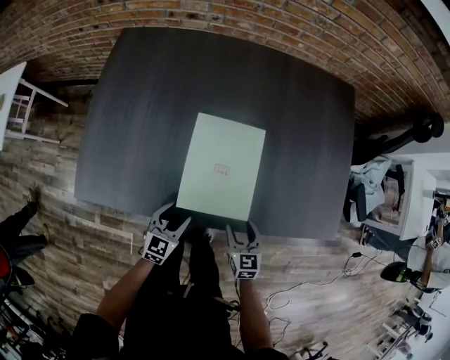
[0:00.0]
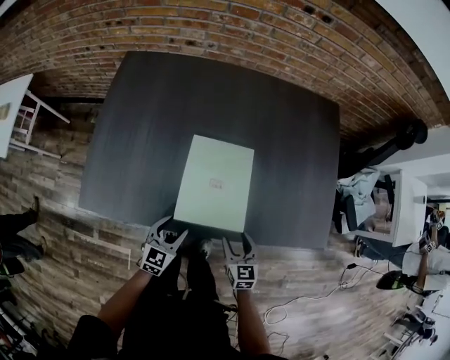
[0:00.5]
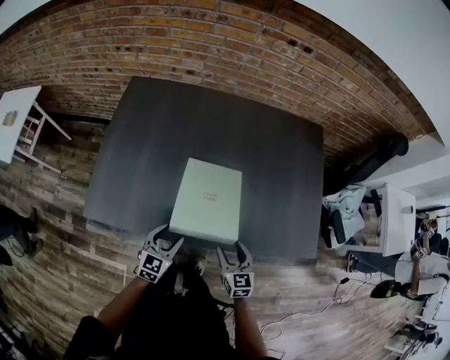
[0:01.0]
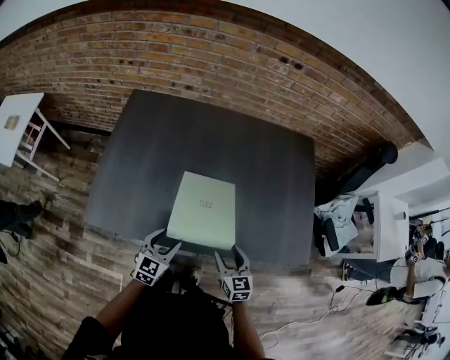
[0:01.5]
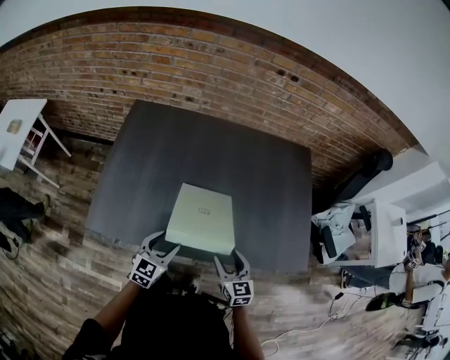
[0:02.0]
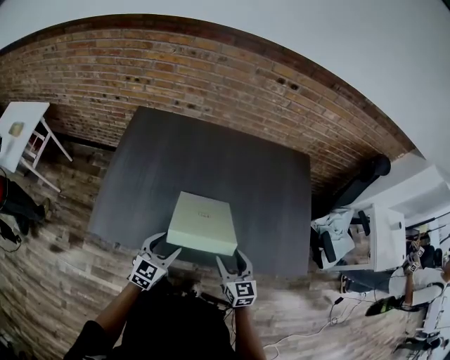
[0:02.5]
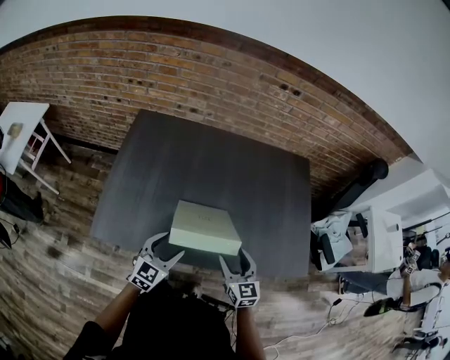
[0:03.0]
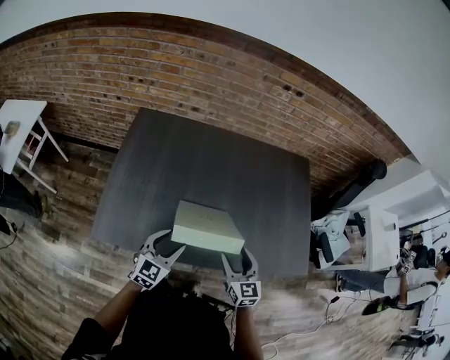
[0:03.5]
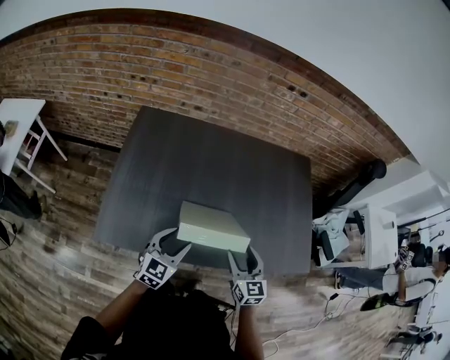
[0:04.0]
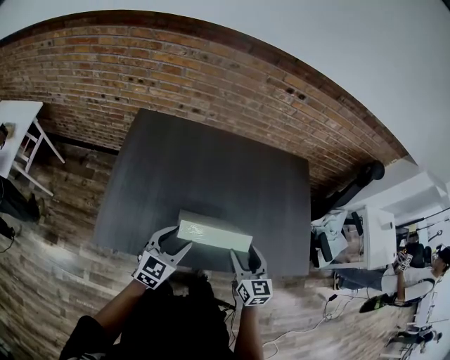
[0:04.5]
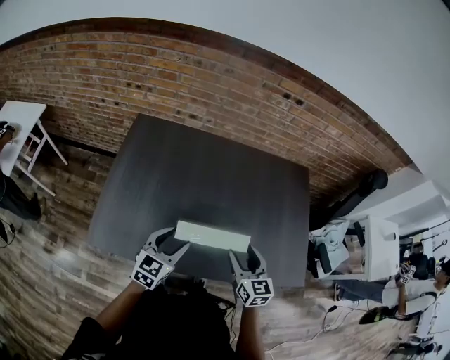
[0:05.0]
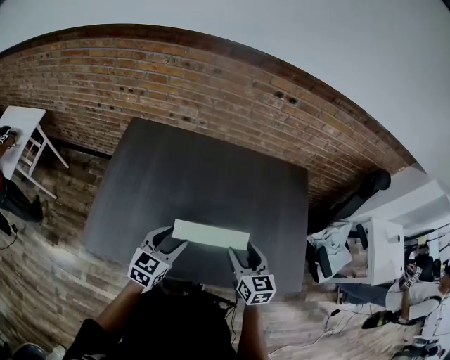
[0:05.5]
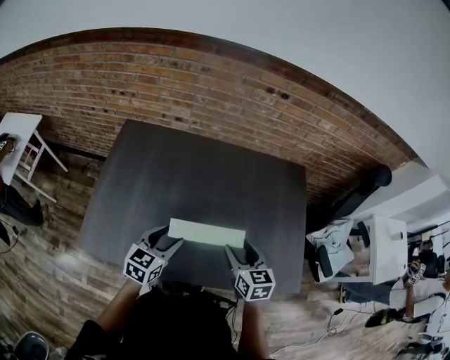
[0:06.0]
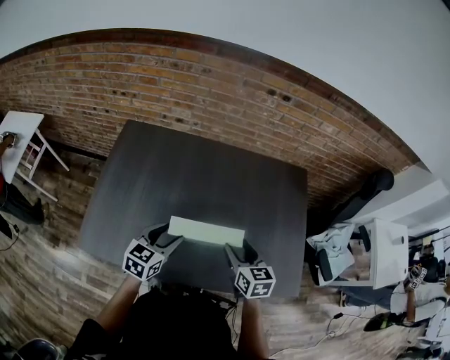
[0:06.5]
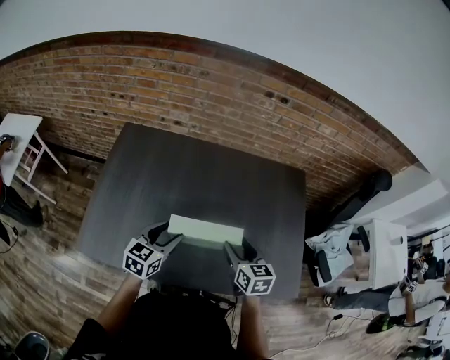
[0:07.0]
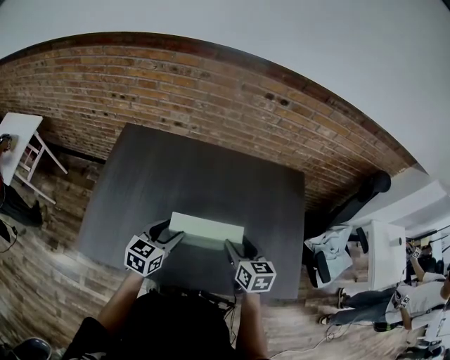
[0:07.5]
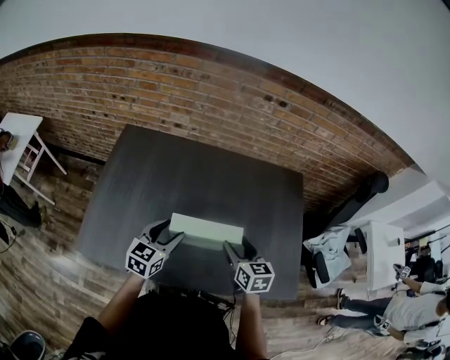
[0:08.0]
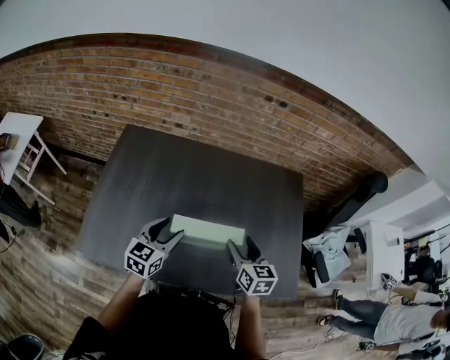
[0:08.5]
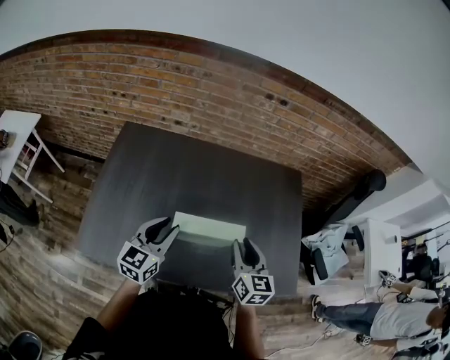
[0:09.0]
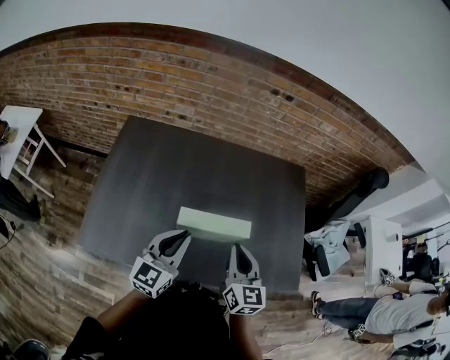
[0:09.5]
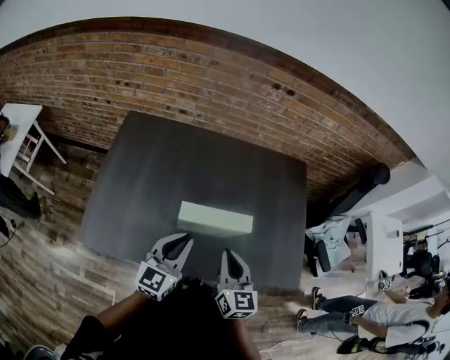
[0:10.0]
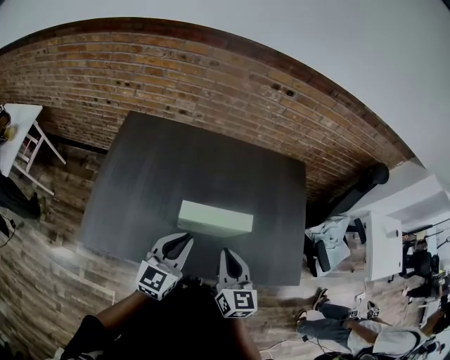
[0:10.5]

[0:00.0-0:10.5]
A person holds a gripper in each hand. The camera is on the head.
0:00.0 to 0:02.0: Both grippers travel together upward, roughly 15 cm.
0:02.0 to 0:04.0: The two grippers go roughly 10 cm upward and to the left.
0:04.0 to 0:06.5: Both grippers move forward and to the right, approximately 15 cm.
0:06.5 to 0:08.5: The grippers make only small movements.
0:08.5 to 0:10.5: The left gripper goes some 10 cm backward, and closes. Meanwhile the right gripper shifts approximately 10 cm backward and to the left, and closes.

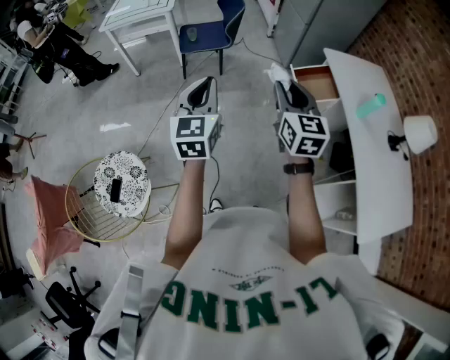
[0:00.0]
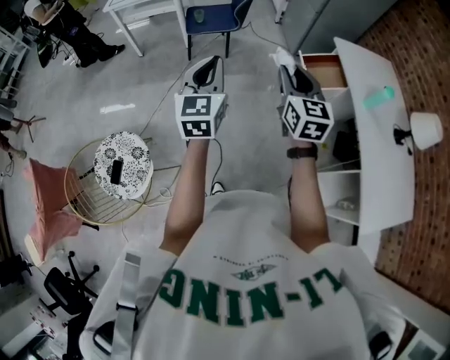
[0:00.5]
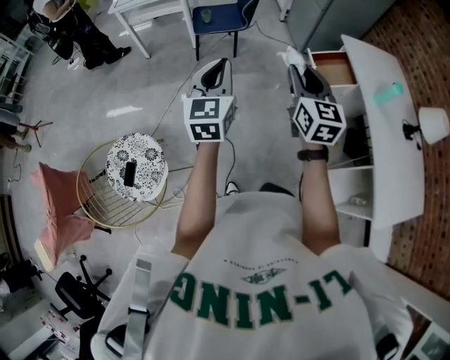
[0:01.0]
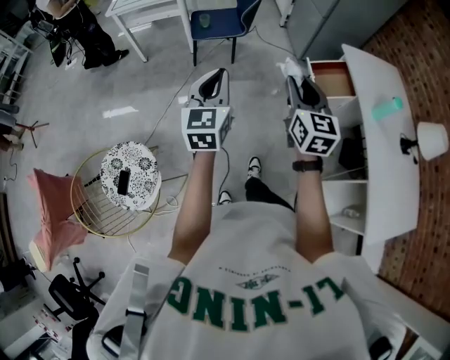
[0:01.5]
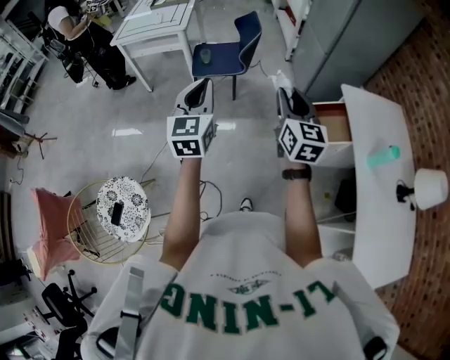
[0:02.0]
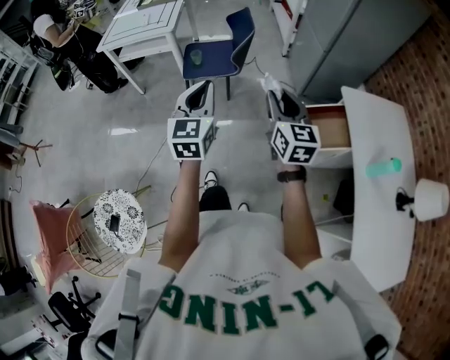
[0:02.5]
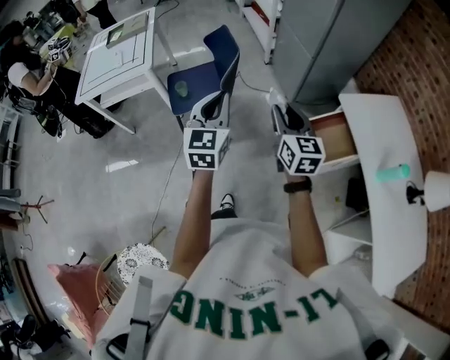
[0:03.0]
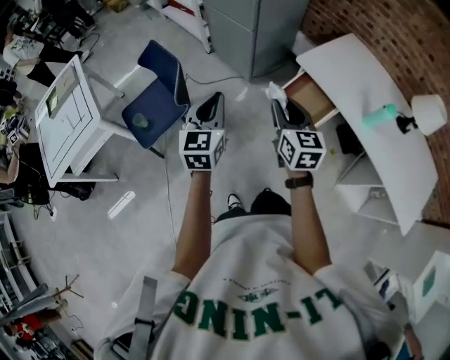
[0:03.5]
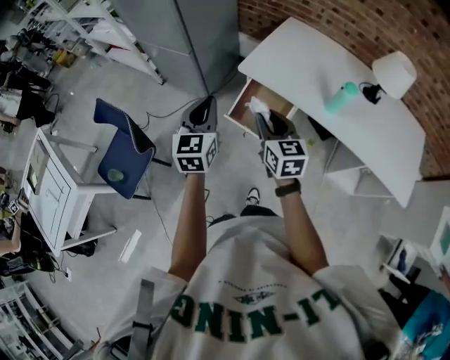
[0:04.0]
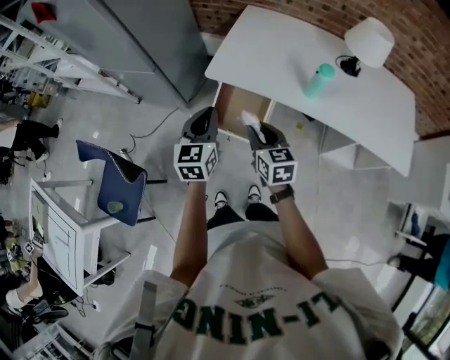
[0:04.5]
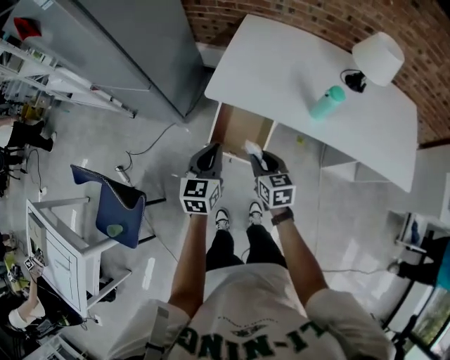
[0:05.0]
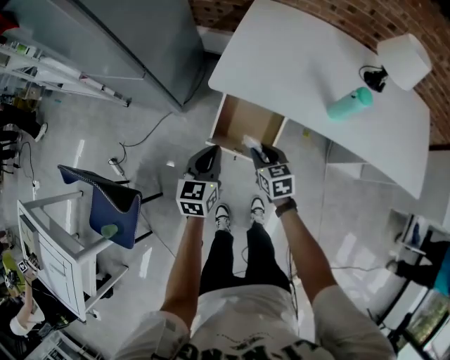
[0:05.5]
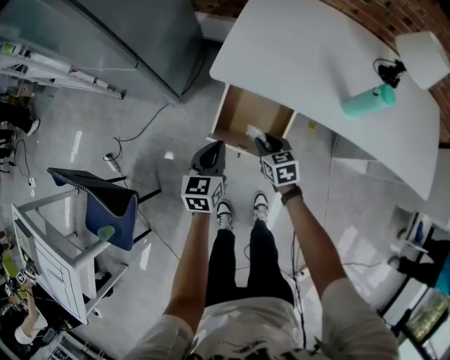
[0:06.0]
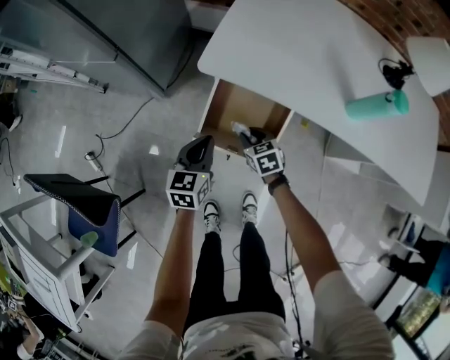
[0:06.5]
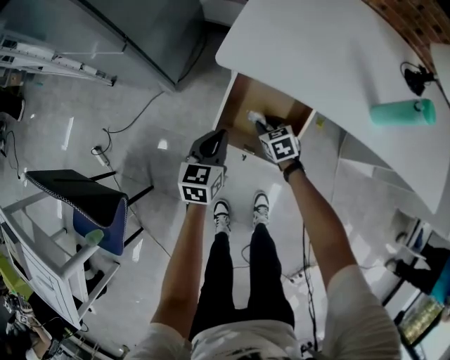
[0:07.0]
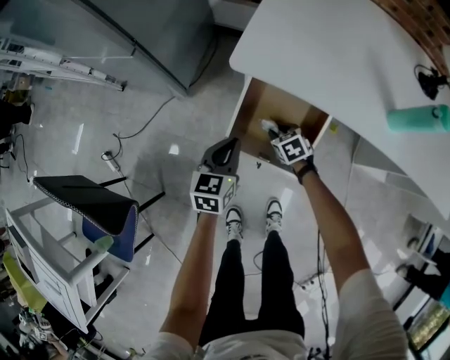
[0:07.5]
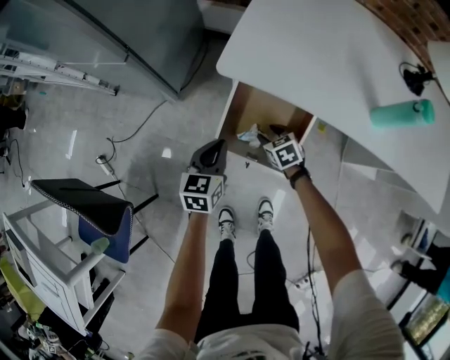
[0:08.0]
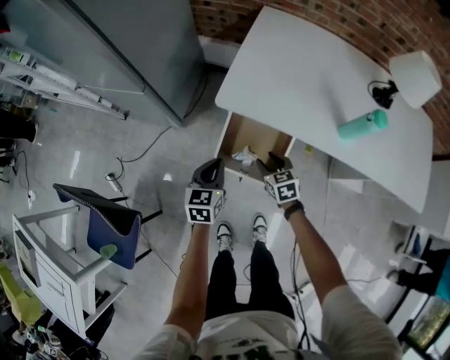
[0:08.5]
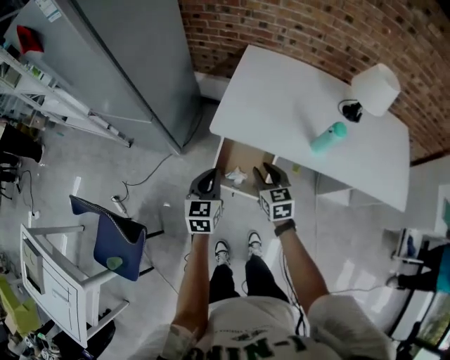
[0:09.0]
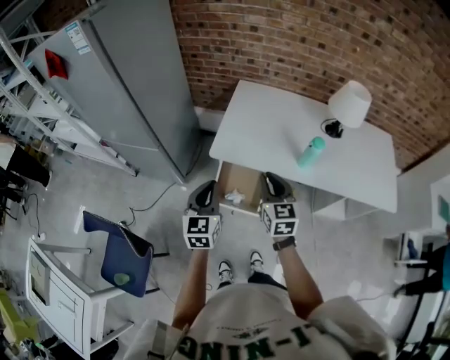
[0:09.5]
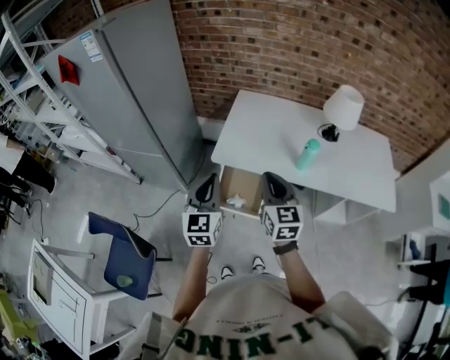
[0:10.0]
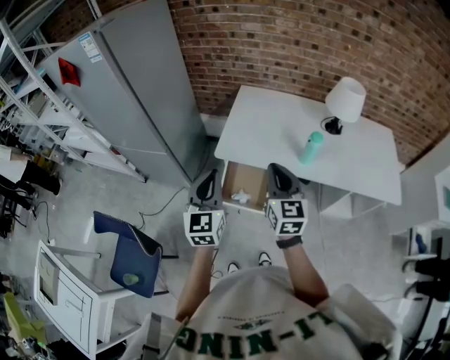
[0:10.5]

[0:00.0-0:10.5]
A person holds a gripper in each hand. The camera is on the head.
0:00.0 to 0:02.0: The two grippers go roughly 20 cm forward.
0:02.0 to 0:04.0: The left gripper shifts by roughly 50 cm, and turns by about 60 degrees. The right gripper moves roughly 30 cm, and turns by some 50 degrees.
0:04.0 to 0:06.5: The right gripper travels downward by roughly 40 cm, and points its fingers roughly 30 degrees further downward. Meanwhile the left gripper shifts some 40 cm downward and forward, and swivels approximately 30 degrees.
0:06.5 to 0:08.5: The left gripper heads upward, covering roughly 5 cm. The right gripper goes roughly 10 cm upward, and opens up.
0:08.5 to 0:10.5: The grippers both shift upward by some 40 cm. The right gripper tips its fingers upward by about 40 degrees, and closes. The left gripper turns by approximately 30 degrees.

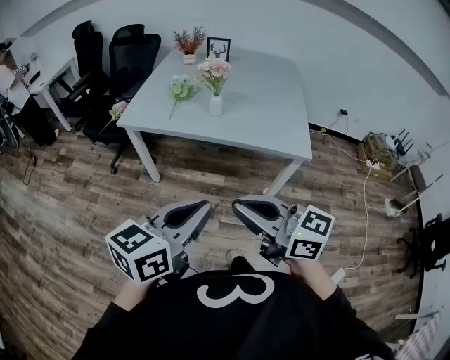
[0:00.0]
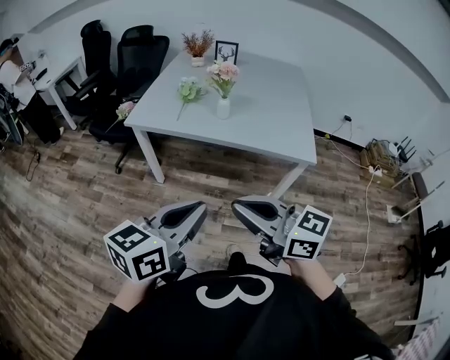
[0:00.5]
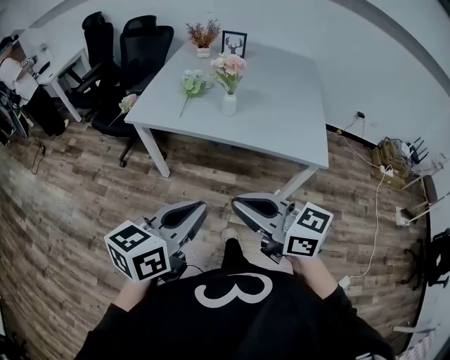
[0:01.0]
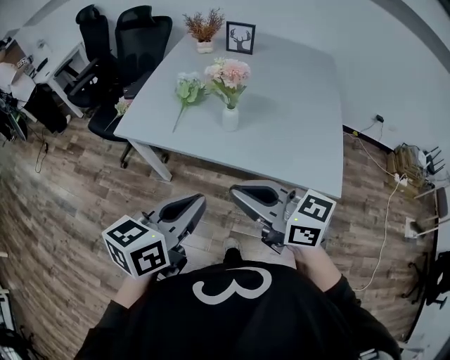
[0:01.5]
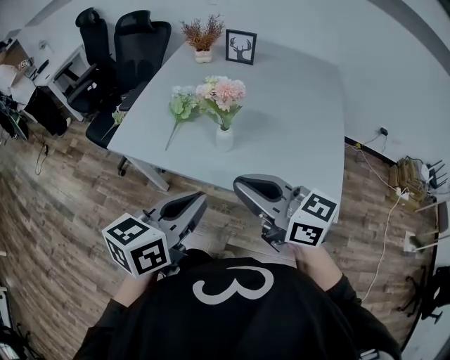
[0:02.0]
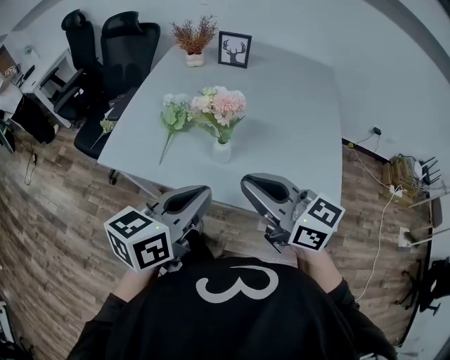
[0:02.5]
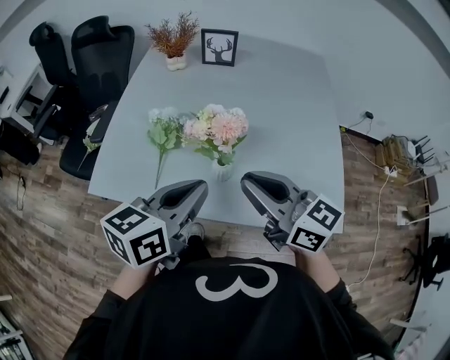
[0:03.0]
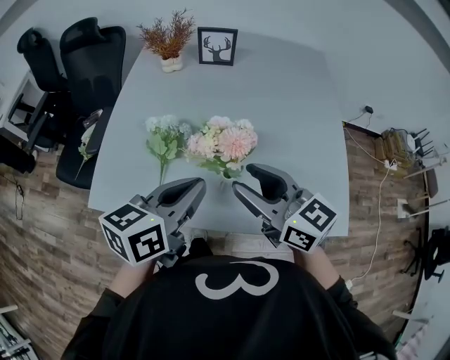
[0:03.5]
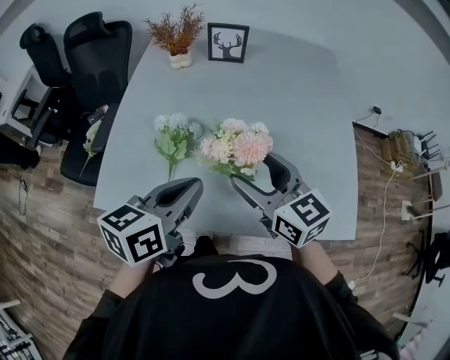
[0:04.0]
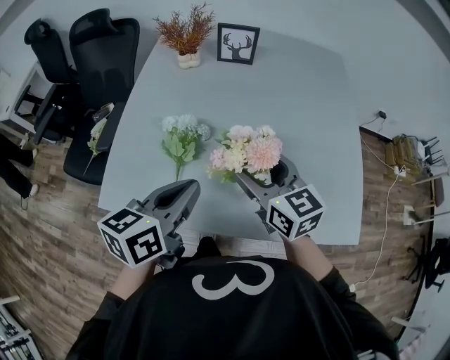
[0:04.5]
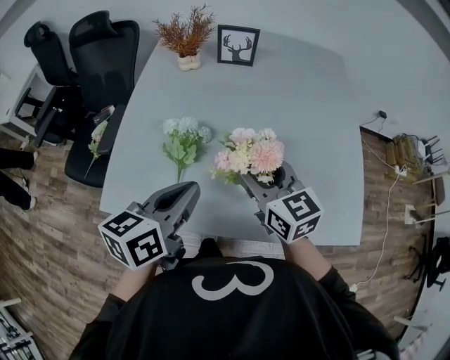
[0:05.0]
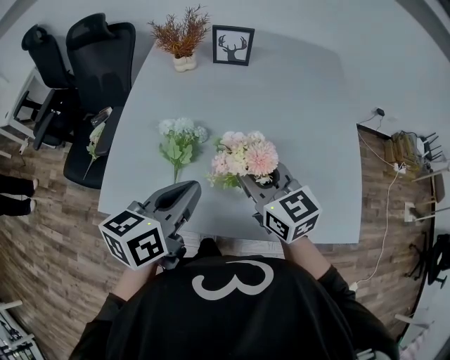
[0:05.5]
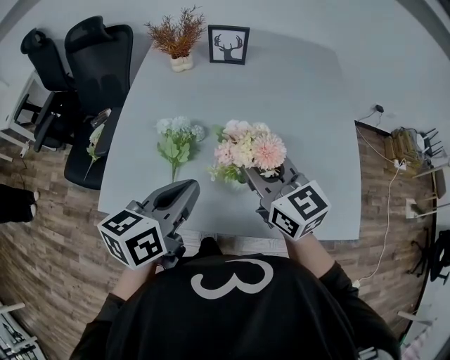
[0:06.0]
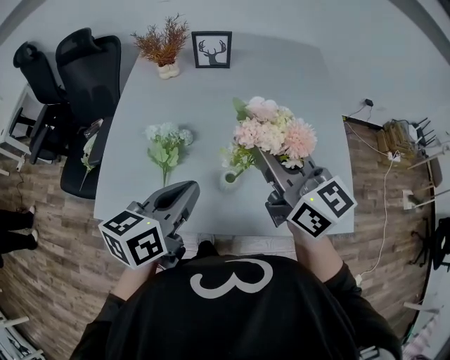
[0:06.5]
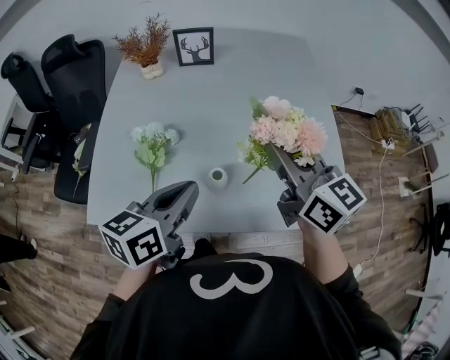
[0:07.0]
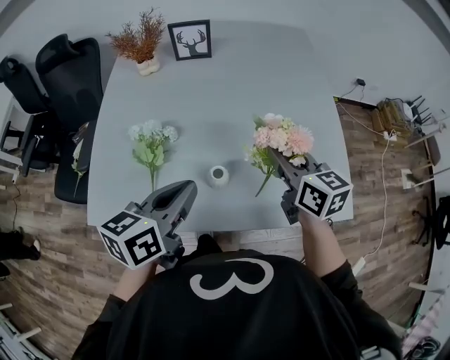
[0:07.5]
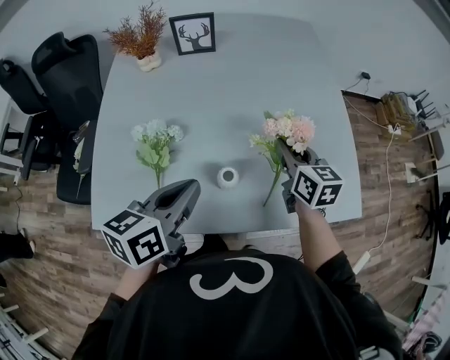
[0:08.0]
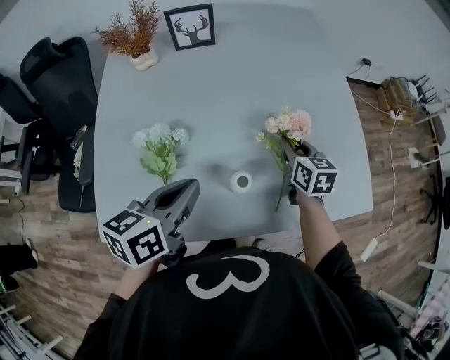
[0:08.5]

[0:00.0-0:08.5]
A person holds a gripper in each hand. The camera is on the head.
0:00.0 to 0:02.0: Both grippers travel together forward, some 30 cm.
0:02.0 to 0:04.0: The grippers both shift forward by roughly 25 cm. The right gripper turns by some 30 degrees, and opens its fingers.
0:04.0 to 0:06.5: The right gripper heads upward, covering about 10 cm, and closes its fingers.
0:06.5 to 0:08.5: The right gripper moves downward, approximately 25 cm, and points its fingers roughly 30 degrees further downward. The left gripper heads downward, covering some 5 cm.
